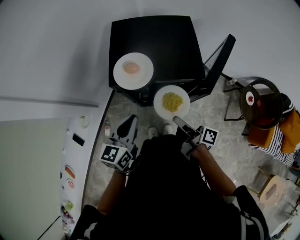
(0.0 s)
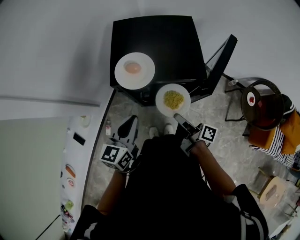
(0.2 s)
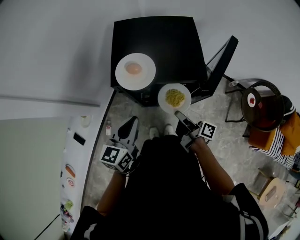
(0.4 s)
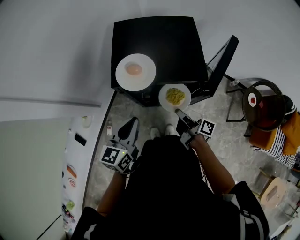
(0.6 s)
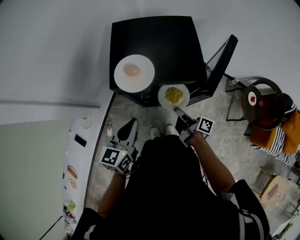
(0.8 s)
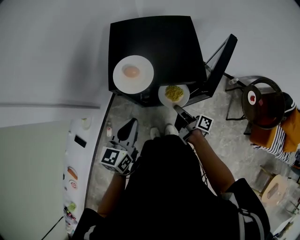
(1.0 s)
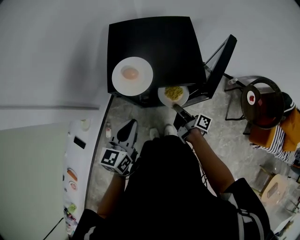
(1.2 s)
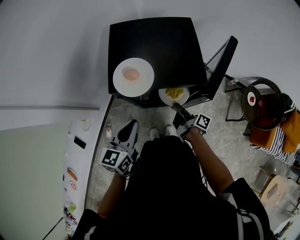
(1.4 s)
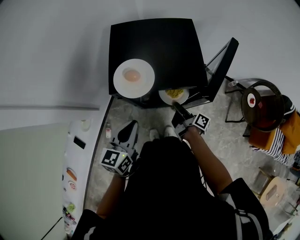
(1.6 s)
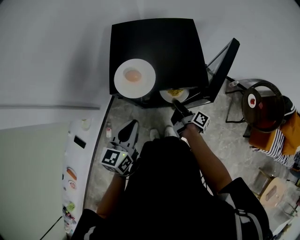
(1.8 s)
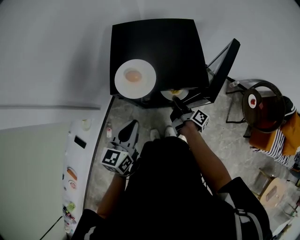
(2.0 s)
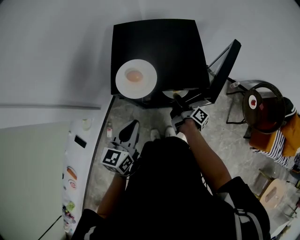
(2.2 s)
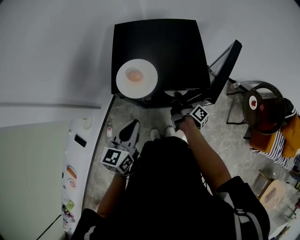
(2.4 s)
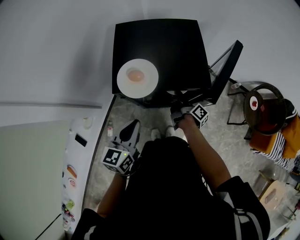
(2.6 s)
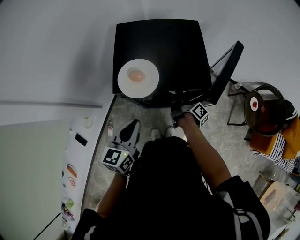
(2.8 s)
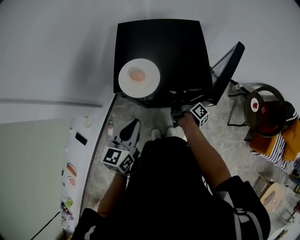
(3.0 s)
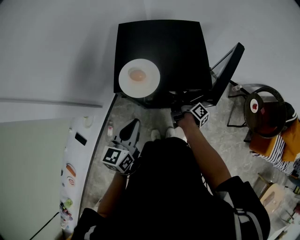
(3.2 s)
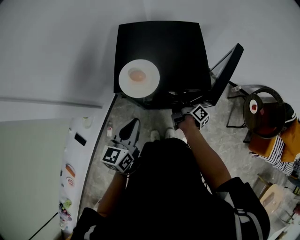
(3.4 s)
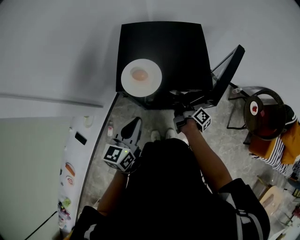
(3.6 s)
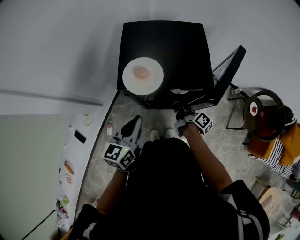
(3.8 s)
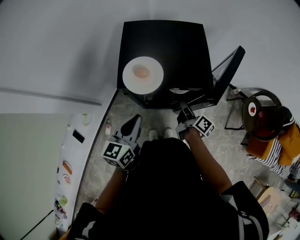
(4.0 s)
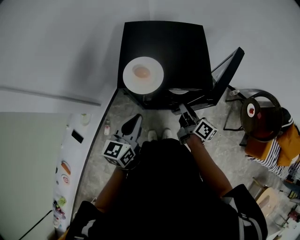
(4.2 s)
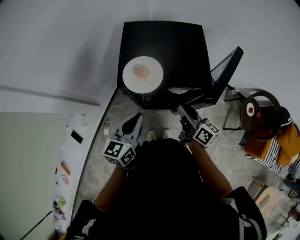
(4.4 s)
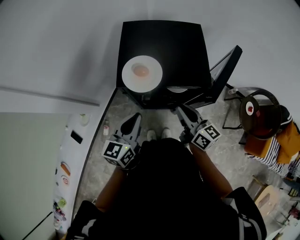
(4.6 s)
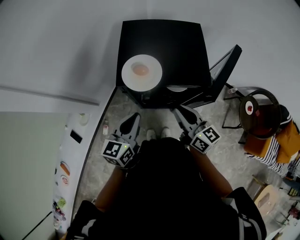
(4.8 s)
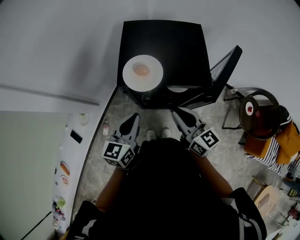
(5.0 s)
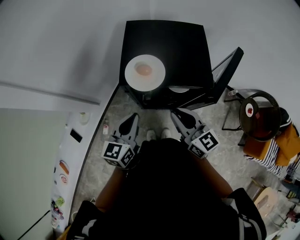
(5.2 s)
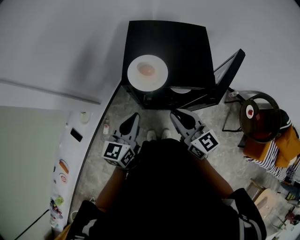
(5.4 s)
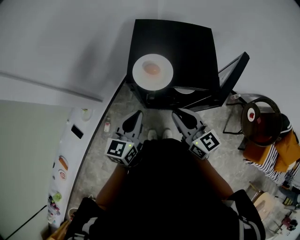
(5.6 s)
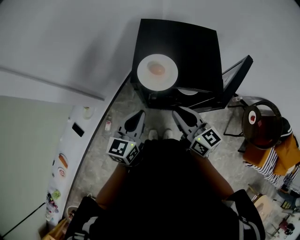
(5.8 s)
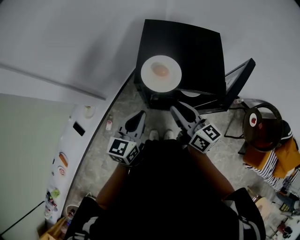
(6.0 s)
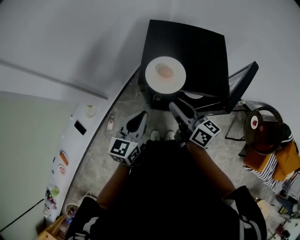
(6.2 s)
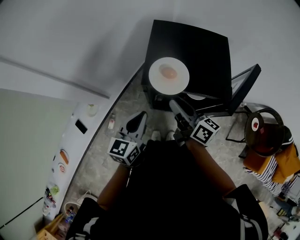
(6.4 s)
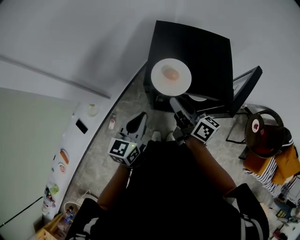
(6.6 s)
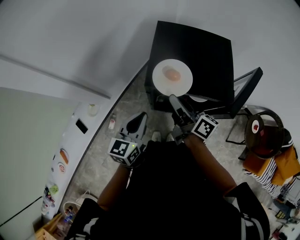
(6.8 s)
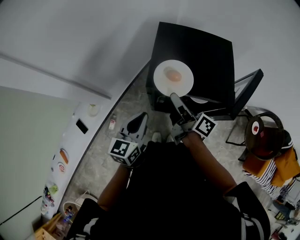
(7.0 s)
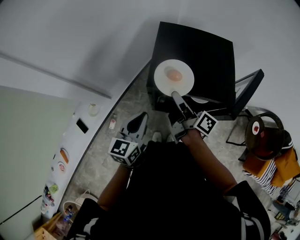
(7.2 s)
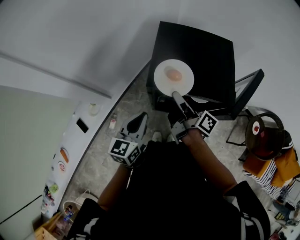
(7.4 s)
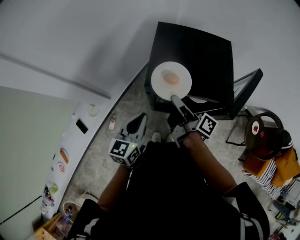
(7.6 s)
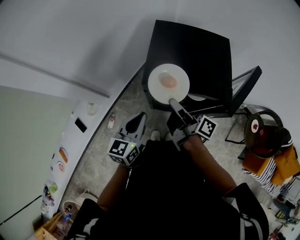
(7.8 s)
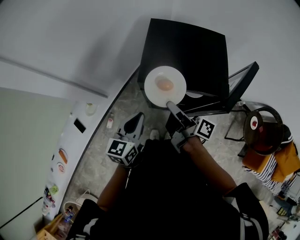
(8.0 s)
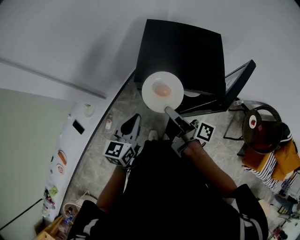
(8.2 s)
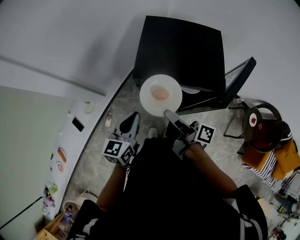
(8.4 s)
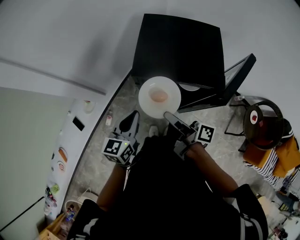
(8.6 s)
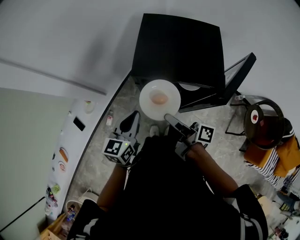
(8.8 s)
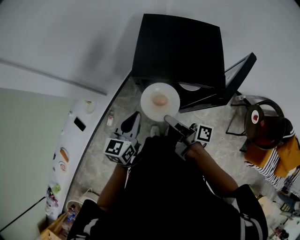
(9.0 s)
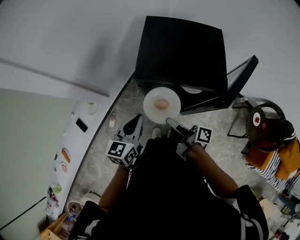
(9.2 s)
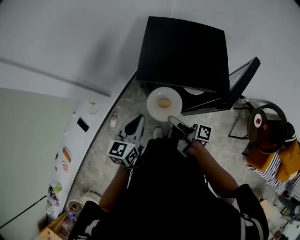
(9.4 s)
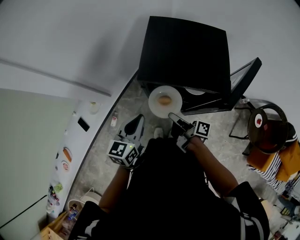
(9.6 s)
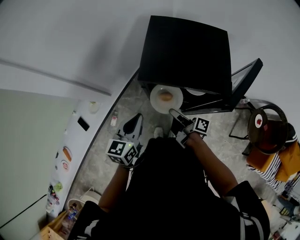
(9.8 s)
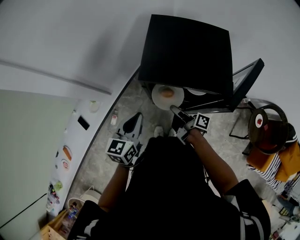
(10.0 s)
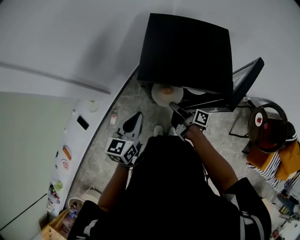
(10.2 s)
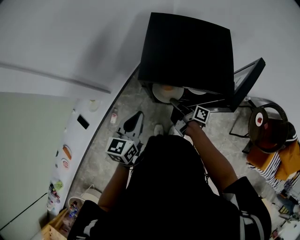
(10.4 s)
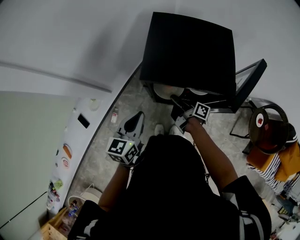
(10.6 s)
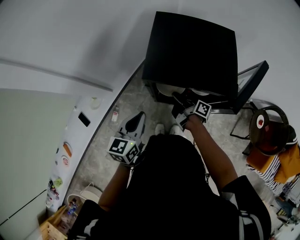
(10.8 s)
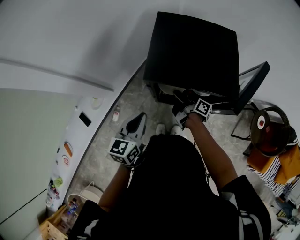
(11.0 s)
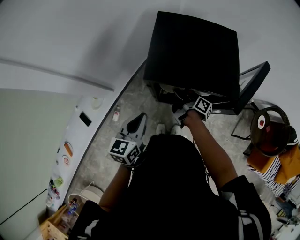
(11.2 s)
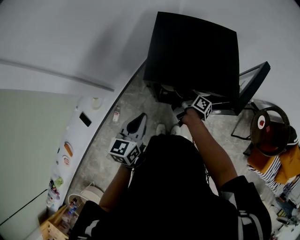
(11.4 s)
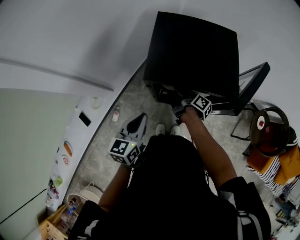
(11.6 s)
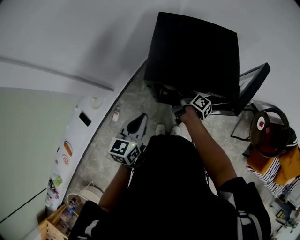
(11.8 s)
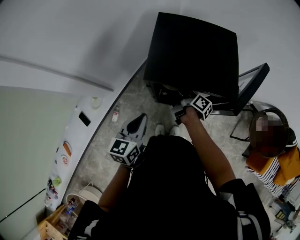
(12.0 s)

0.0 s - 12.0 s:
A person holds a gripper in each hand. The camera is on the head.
0.0 s - 1.6 s: The right gripper heads downward and forward, covering roughly 15 cm.
1.6 s - 3.0 s: The right gripper moves forward, some 5 cm.
3.0 s - 4.4 s: The right gripper heads upward and backward, covering about 15 cm, and rotates around the line of its fingers by about 40 degrees, counterclockwise from behind.
4.4 s - 6.0 s: The right gripper heads to the left and upward, covering some 10 cm.
6.0 s - 7.6 s: The right gripper goes approximately 5 cm forward, and twists some 50 degrees clockwise, seen from behind.
7.6 s - 9.0 s: The right gripper is displaced backward by about 10 cm.
9.0 s - 10.4 s: The right gripper goes approximately 15 cm downward and forward.
10.4 s - 12.0 s: The right gripper travels forward by approximately 5 cm, and opens.

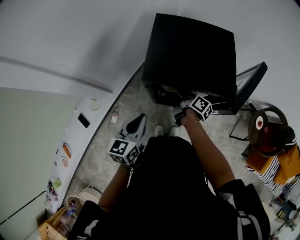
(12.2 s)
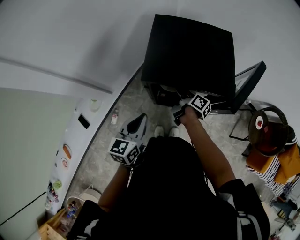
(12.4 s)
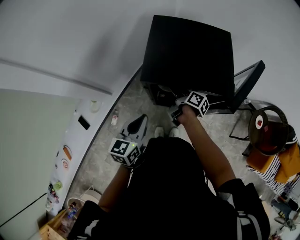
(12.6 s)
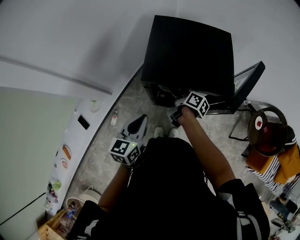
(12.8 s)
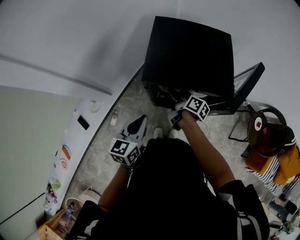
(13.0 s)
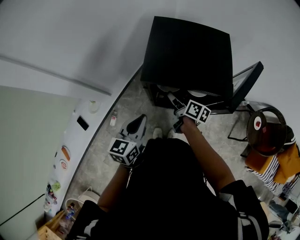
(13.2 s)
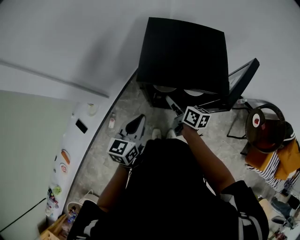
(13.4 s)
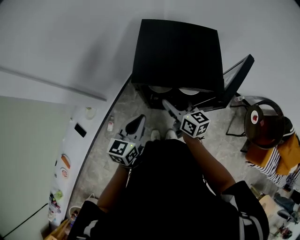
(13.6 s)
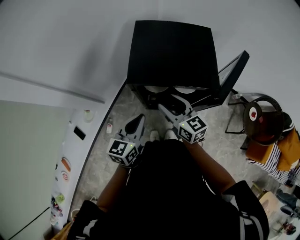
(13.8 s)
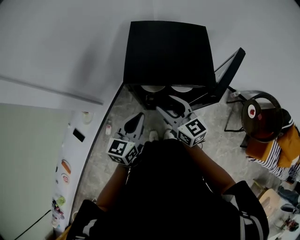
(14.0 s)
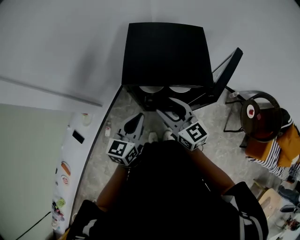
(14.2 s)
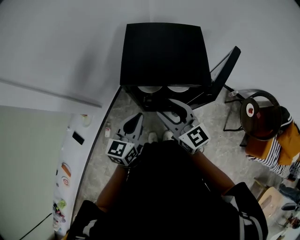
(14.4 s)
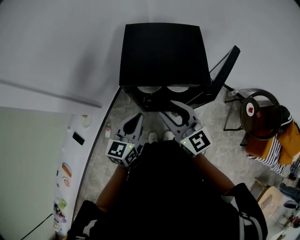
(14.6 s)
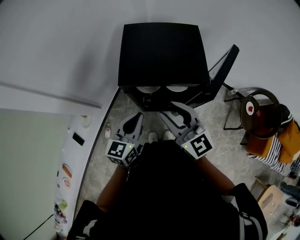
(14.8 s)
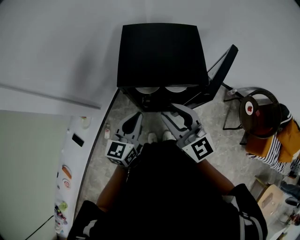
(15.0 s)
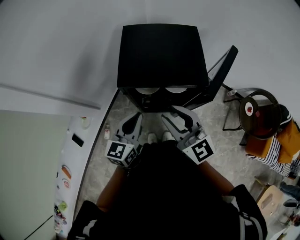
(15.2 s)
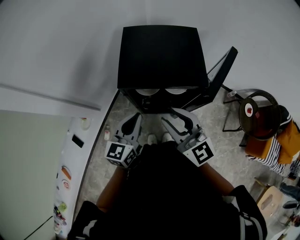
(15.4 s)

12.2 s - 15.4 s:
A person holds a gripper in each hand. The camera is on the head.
12.2 s - 13.8 s: The right gripper moves upward and backward, approximately 15 cm, and twists roughly 60 degrees counterclockwise, seen from behind.
13.8 s - 15.4 s: The right gripper moves upward and backward, some 15 cm, and swivels roughly 20 degrees.

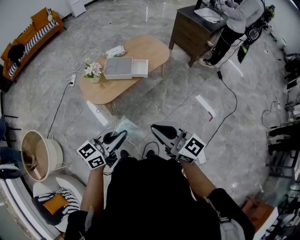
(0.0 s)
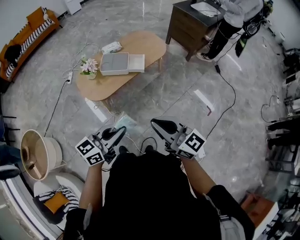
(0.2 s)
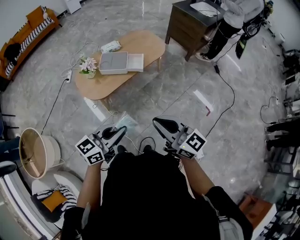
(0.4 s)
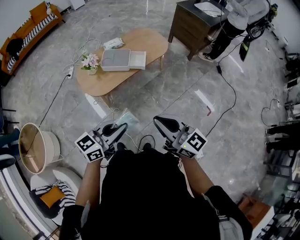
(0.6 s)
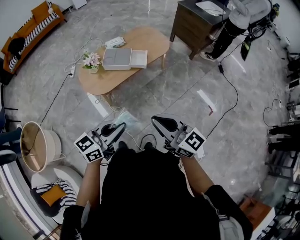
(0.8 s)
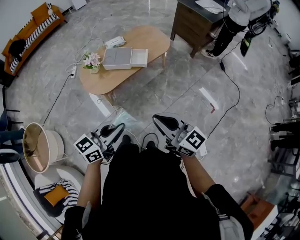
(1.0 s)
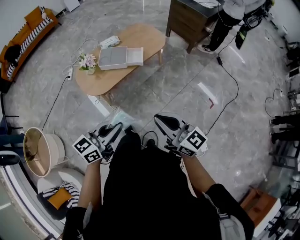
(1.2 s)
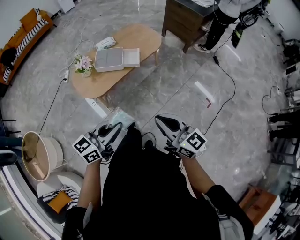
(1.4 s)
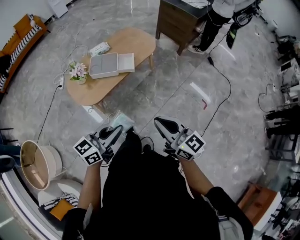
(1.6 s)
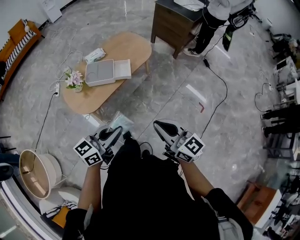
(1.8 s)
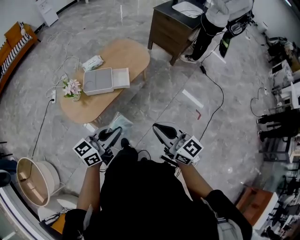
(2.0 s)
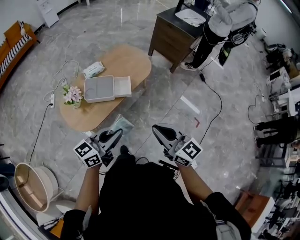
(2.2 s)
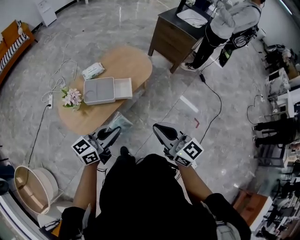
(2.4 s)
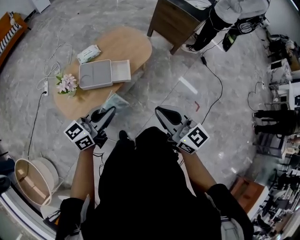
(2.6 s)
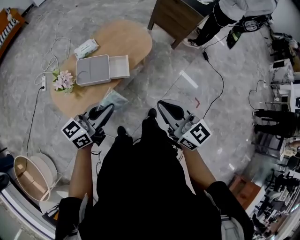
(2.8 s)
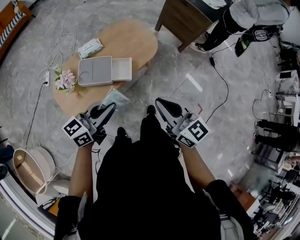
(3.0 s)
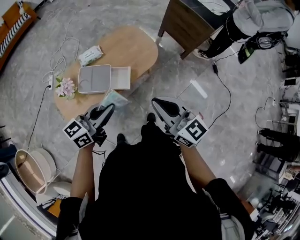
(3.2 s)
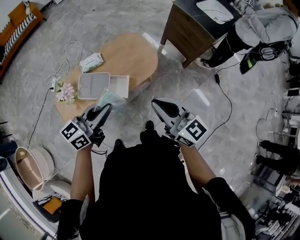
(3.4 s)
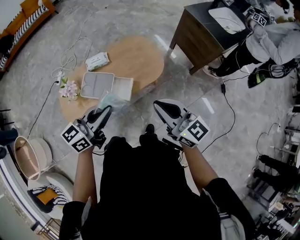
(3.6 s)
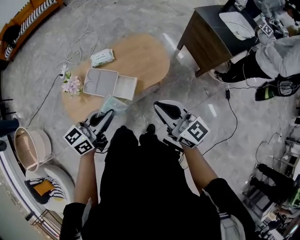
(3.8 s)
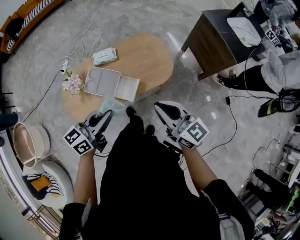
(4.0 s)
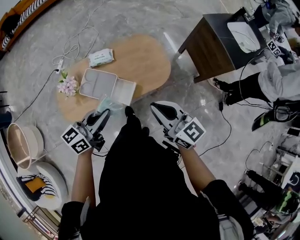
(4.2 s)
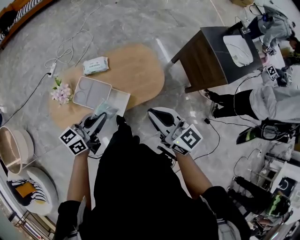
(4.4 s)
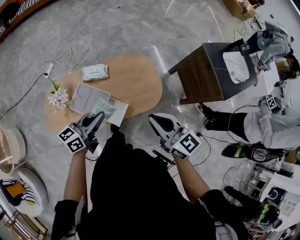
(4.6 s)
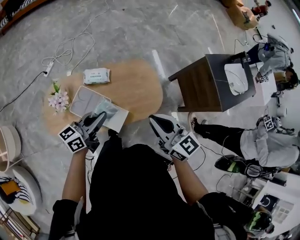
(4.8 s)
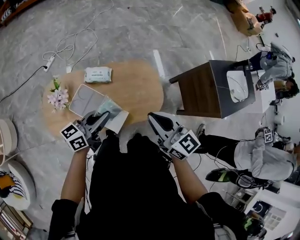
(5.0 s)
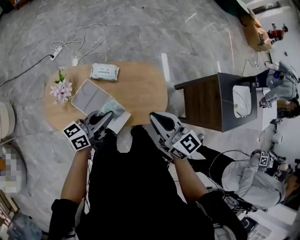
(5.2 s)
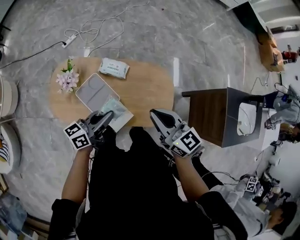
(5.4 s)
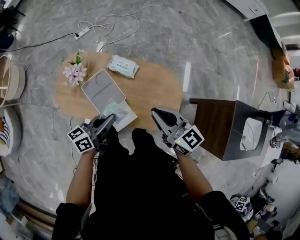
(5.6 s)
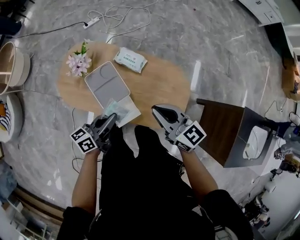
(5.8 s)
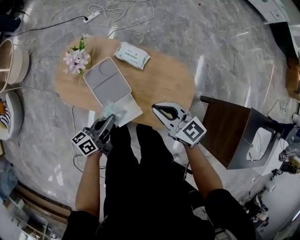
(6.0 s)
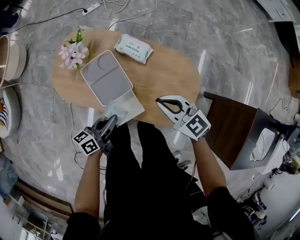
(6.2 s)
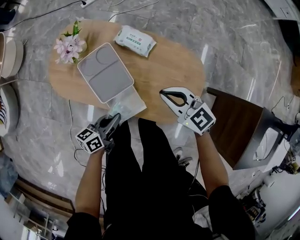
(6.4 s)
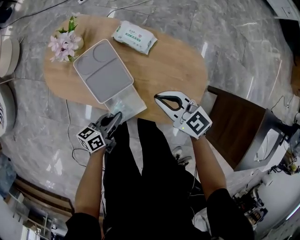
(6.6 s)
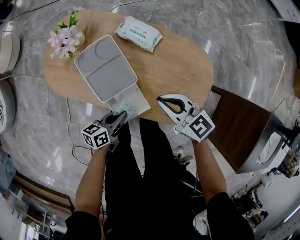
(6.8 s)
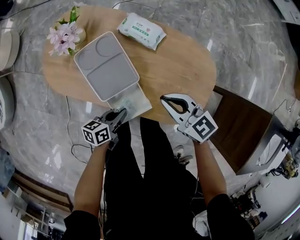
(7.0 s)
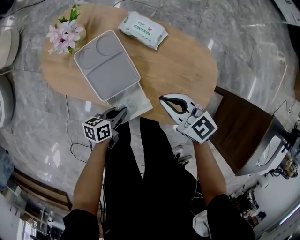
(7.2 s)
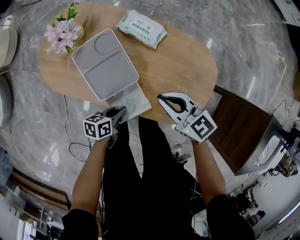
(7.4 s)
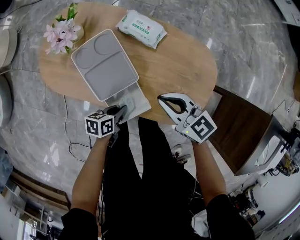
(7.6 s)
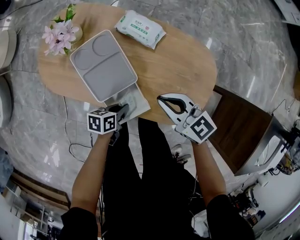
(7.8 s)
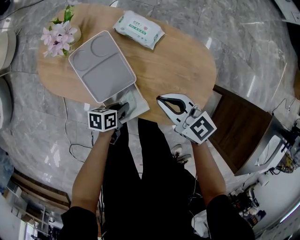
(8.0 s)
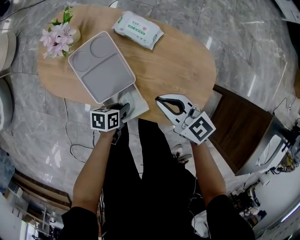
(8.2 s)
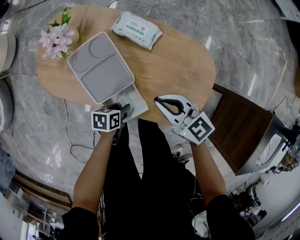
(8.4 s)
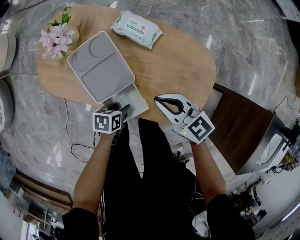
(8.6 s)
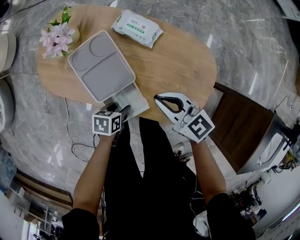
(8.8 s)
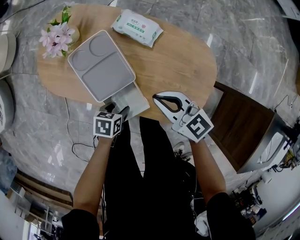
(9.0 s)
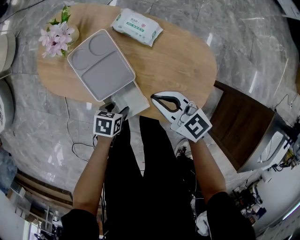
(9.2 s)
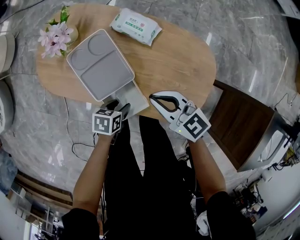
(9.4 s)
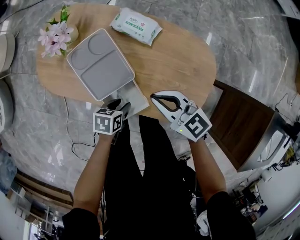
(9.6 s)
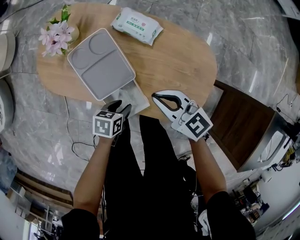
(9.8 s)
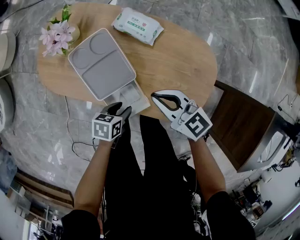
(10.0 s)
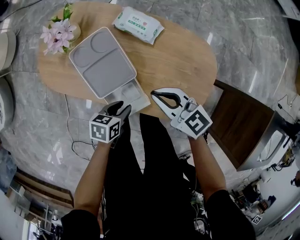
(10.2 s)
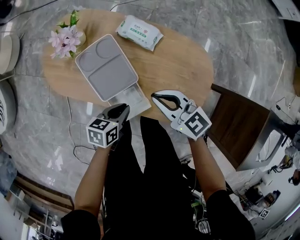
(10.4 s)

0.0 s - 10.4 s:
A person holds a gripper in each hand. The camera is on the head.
0.0 s - 1.4 s: The right gripper goes about 5 cm to the right.
1.4 s - 3.0 s: The grippers both shift forward by roughly 35 cm.
3.0 s - 4.4 s: The grippers both shift forward by roughly 20 cm. The right gripper rotates approximately 20 degrees. The left gripper swivels roughly 30 degrees.
4.4 s - 6.0 s: The left gripper is displaced downward by about 15 cm, and rotates some 50 degrees; the right gripper moves roughly 30 cm, and turns by approximately 50 degrees.
6.0 s - 7.4 s: The right gripper shifts about 15 cm downward, while the left gripper is displaced downward by some 25 cm, and rotates about 30 degrees.
7.4 s - 9.0 s: The left gripper turns by roughly 30 degrees, and opens.
9.0 s - 10.4 s: The left gripper heads upward, covering approximately 10 cm, and closes its fingers.
